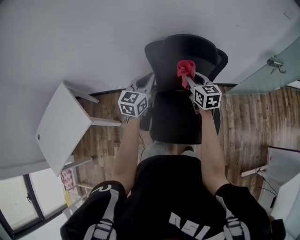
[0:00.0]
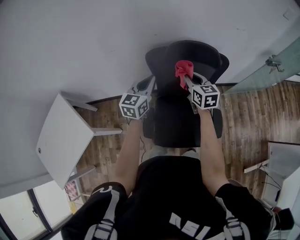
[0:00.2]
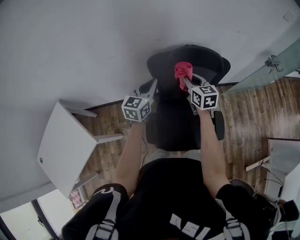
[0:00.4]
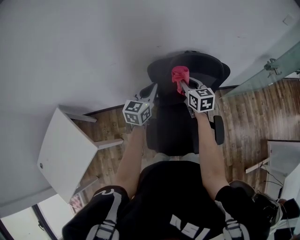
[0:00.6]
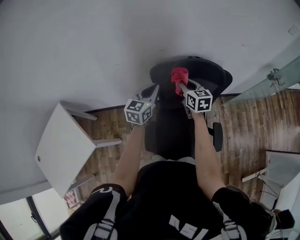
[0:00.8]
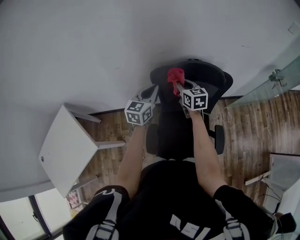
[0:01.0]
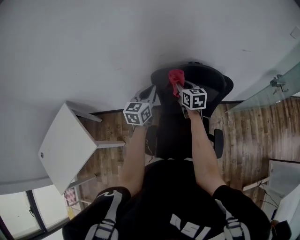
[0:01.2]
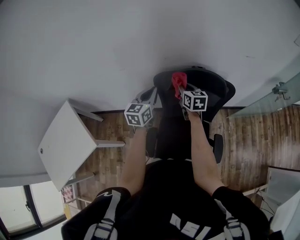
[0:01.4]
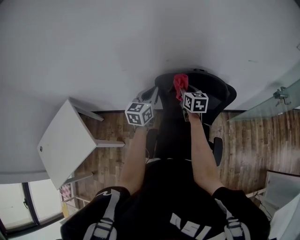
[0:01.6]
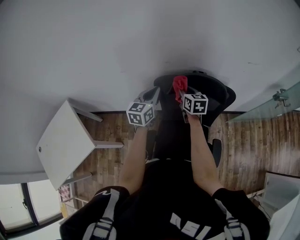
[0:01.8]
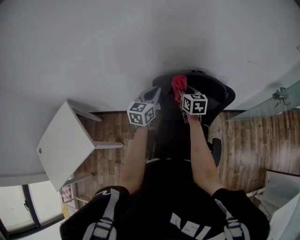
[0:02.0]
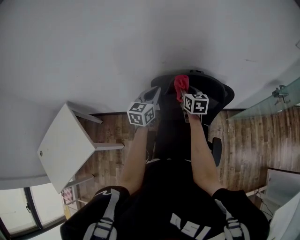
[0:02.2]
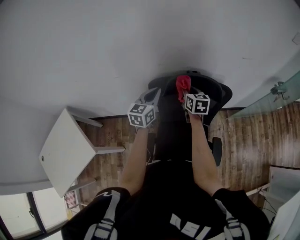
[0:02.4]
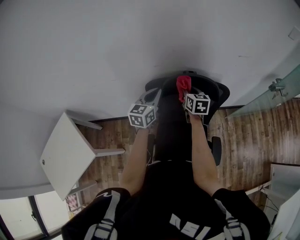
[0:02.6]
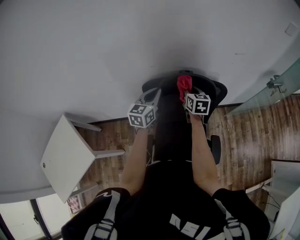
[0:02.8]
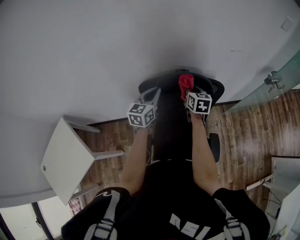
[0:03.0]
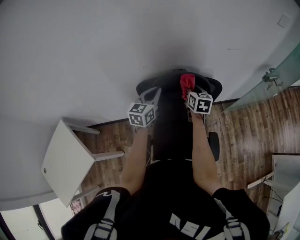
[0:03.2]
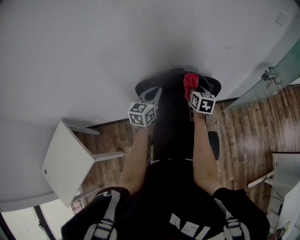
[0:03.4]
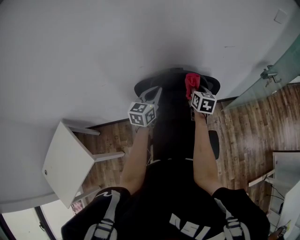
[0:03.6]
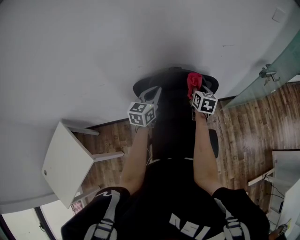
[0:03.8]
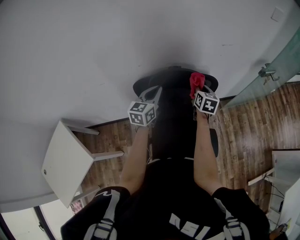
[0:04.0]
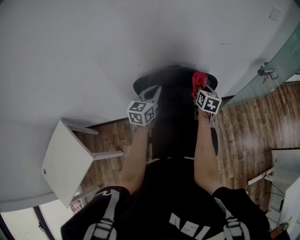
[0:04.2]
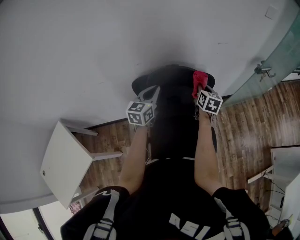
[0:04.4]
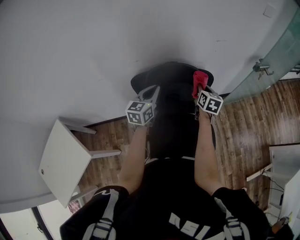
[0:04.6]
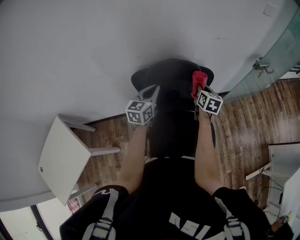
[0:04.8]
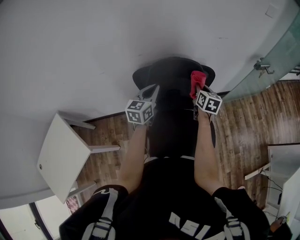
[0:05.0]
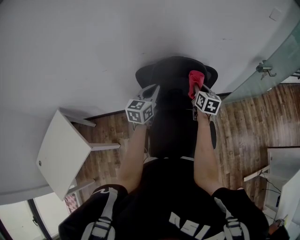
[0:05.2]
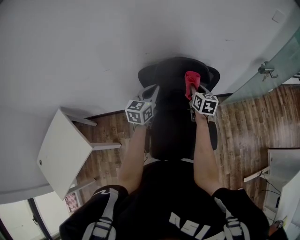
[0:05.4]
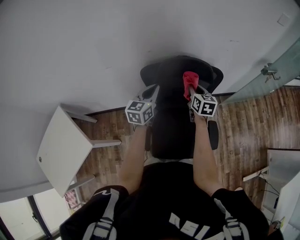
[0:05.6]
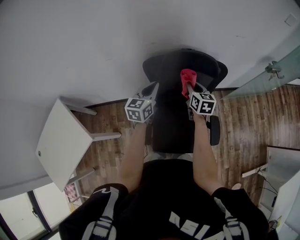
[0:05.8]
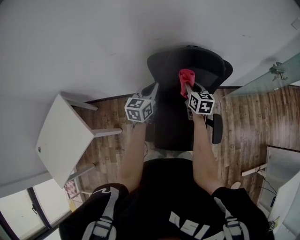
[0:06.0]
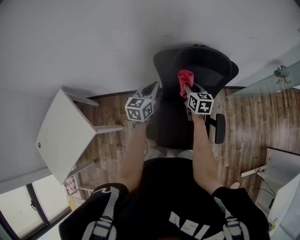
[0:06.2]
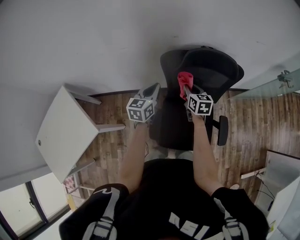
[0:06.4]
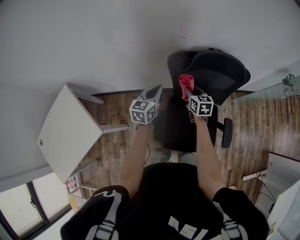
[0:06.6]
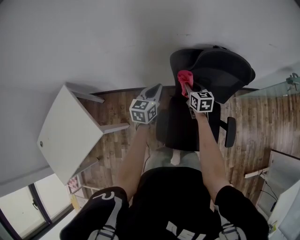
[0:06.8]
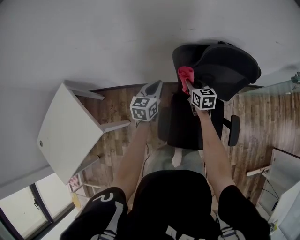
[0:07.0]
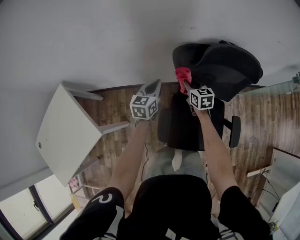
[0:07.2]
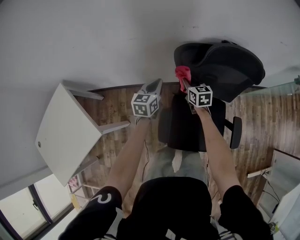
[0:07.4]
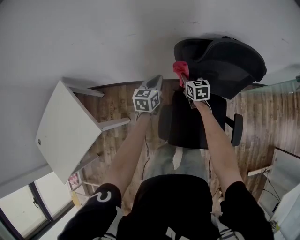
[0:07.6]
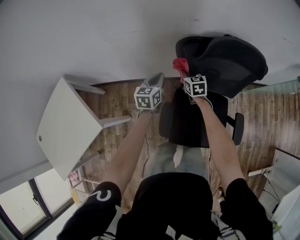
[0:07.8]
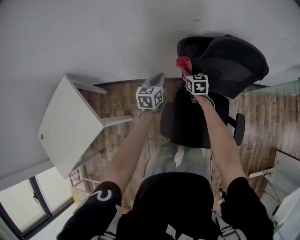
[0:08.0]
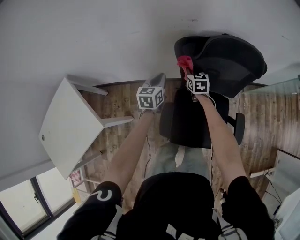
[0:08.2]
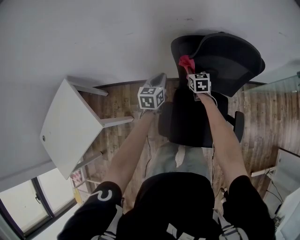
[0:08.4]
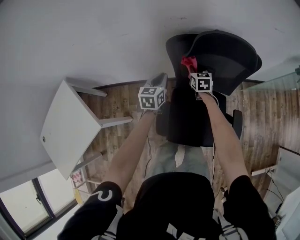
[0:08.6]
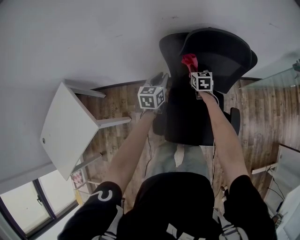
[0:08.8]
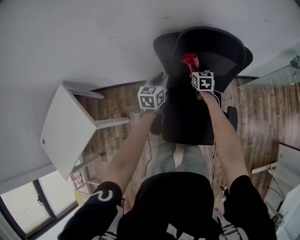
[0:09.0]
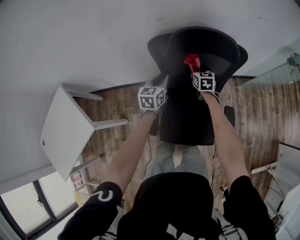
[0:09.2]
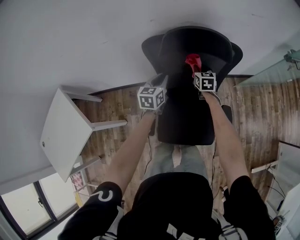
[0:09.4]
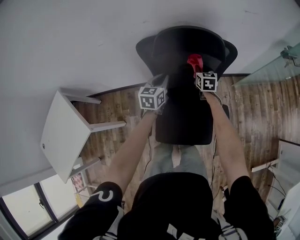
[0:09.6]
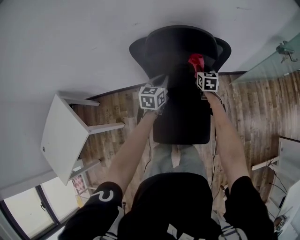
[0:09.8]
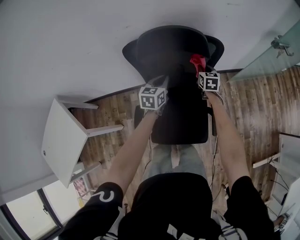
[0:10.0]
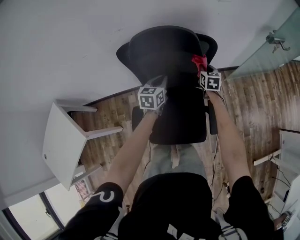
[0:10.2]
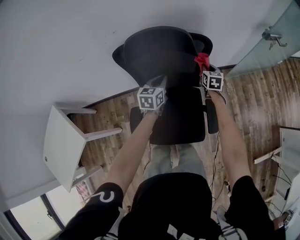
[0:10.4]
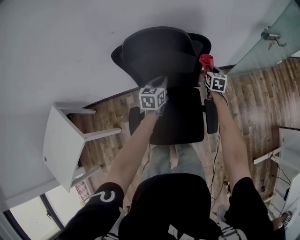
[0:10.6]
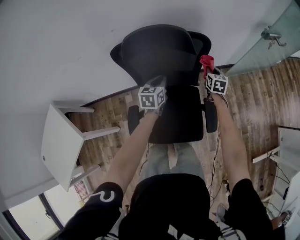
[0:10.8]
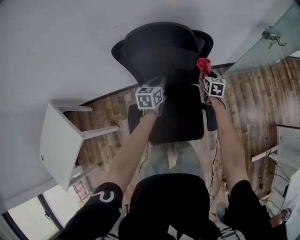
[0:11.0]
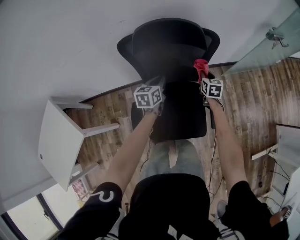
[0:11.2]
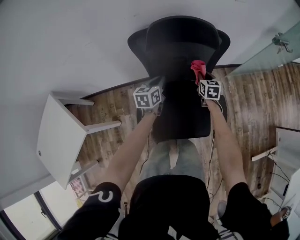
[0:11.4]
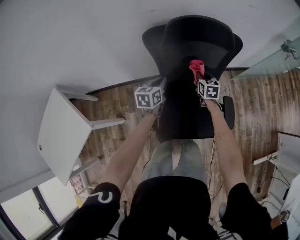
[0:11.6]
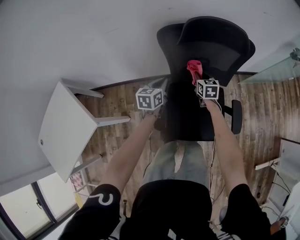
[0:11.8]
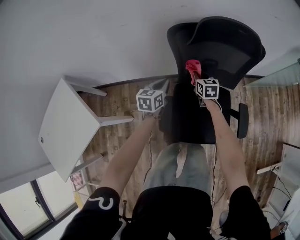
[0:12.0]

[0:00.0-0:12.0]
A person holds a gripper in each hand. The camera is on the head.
0:00.0 to 0:01.6: The left gripper shifts approximately 15 cm forward. The right gripper goes some 20 cm forward and to the left.
0:01.6 to 0:03.0: Both grippers move to the right, approximately 10 cm.
0:03.0 to 0:04.4: The left gripper ends up approximately 5 cm from where it was. The right gripper shifts roughly 10 cm to the right.
0:04.4 to 0:06.0: The left gripper travels to the left, backward and downward by roughly 15 cm; the right gripper goes roughly 20 cm to the left and backward.
0:06.0 to 0:07.6: The left gripper moves downward and to the left, approximately 20 cm, while the right gripper heads to the left and downward, covering approximately 25 cm.
0:07.6 to 0:09.0: Both grippers travel together to the right, about 15 cm.
0:09.0 to 0:10.4: The grippers both shift to the right by about 25 cm.
0:10.4 to 0:12.0: The grippers both shift to the left by approximately 30 cm.

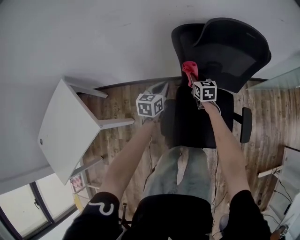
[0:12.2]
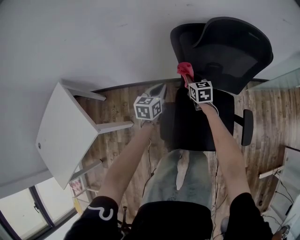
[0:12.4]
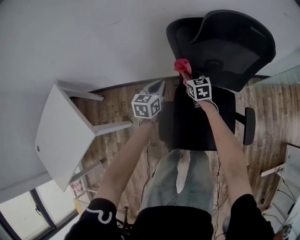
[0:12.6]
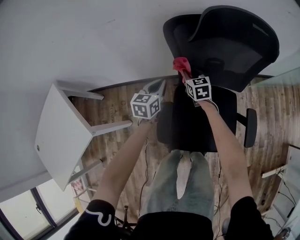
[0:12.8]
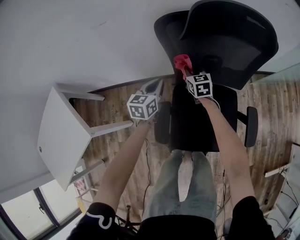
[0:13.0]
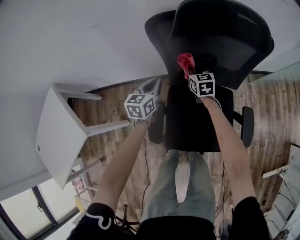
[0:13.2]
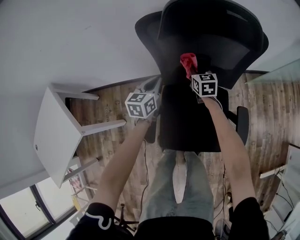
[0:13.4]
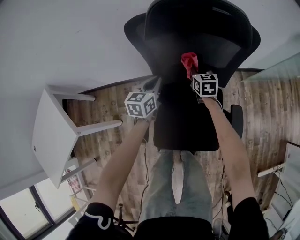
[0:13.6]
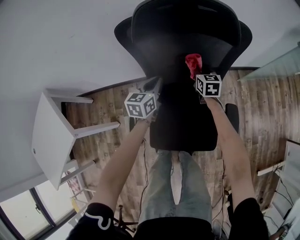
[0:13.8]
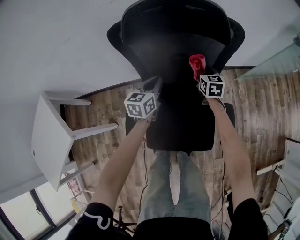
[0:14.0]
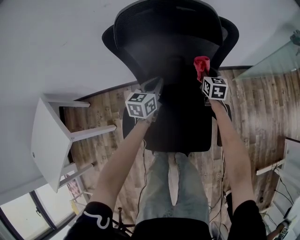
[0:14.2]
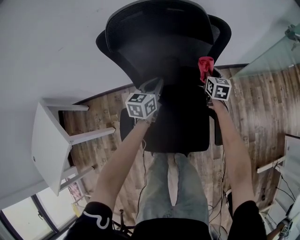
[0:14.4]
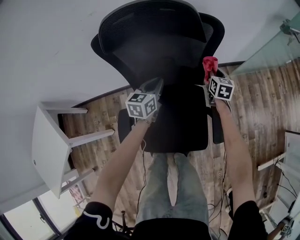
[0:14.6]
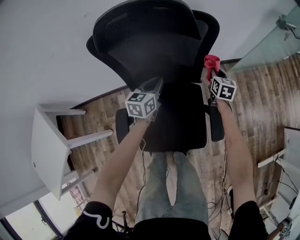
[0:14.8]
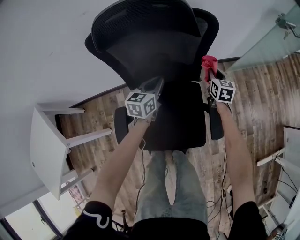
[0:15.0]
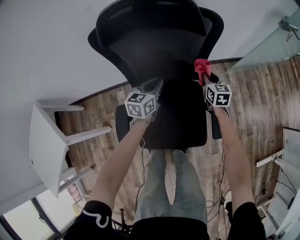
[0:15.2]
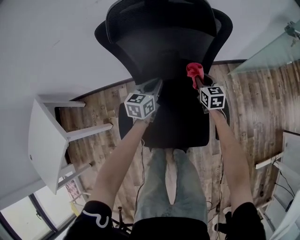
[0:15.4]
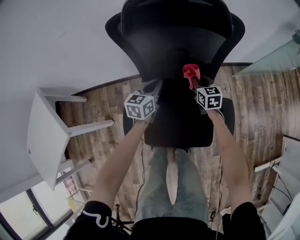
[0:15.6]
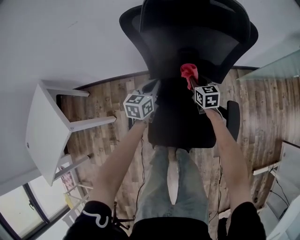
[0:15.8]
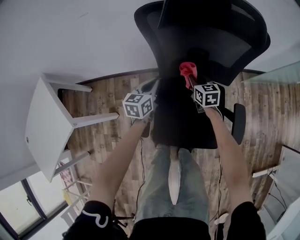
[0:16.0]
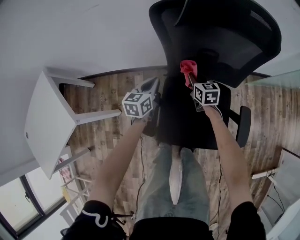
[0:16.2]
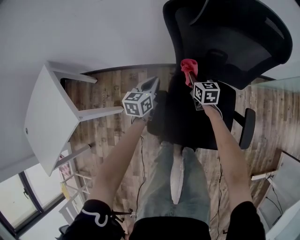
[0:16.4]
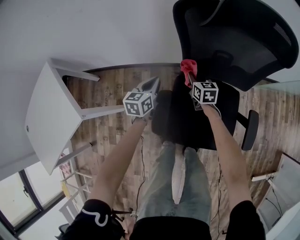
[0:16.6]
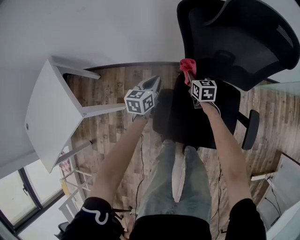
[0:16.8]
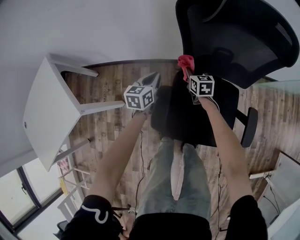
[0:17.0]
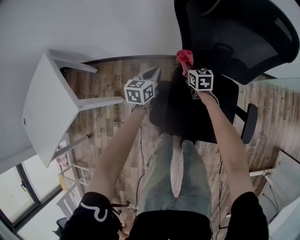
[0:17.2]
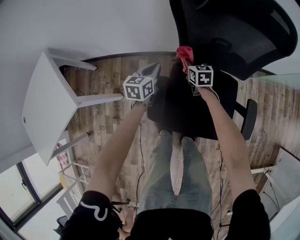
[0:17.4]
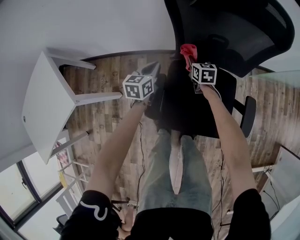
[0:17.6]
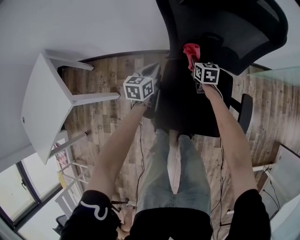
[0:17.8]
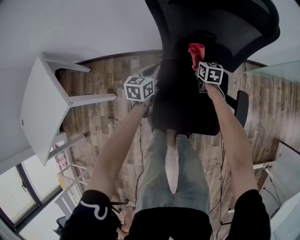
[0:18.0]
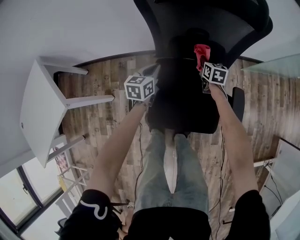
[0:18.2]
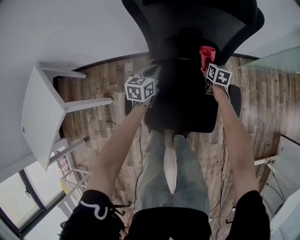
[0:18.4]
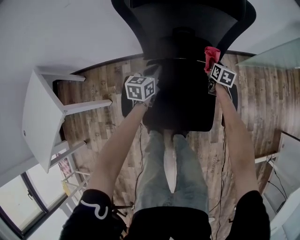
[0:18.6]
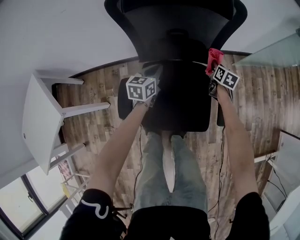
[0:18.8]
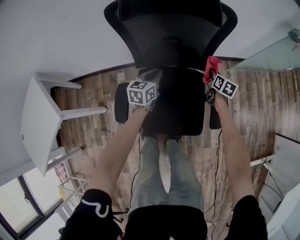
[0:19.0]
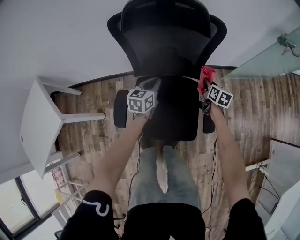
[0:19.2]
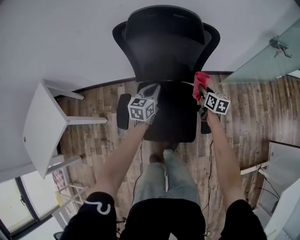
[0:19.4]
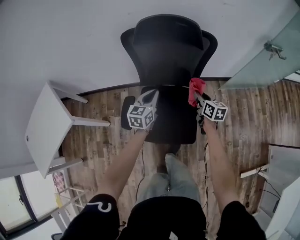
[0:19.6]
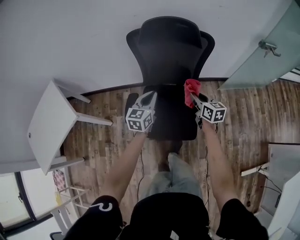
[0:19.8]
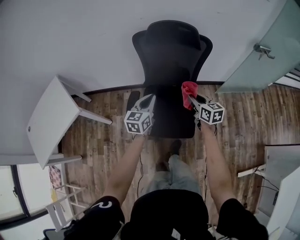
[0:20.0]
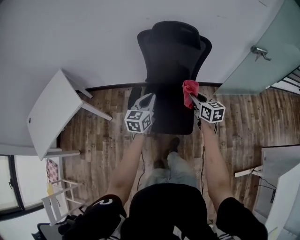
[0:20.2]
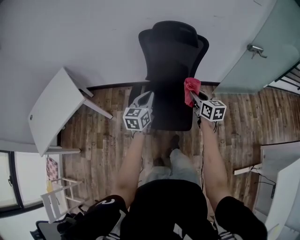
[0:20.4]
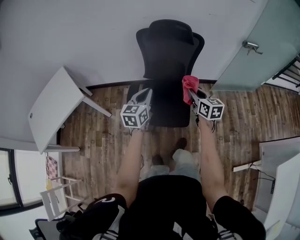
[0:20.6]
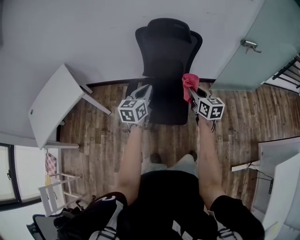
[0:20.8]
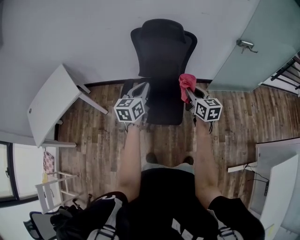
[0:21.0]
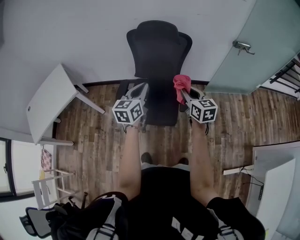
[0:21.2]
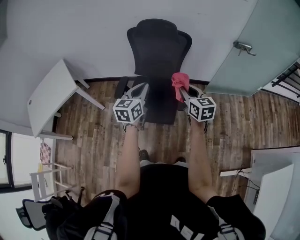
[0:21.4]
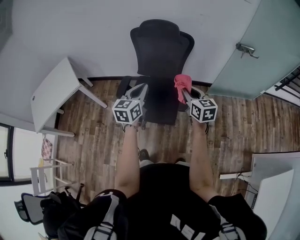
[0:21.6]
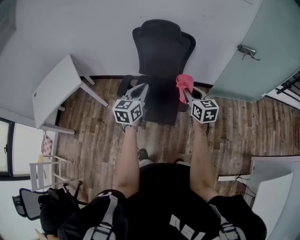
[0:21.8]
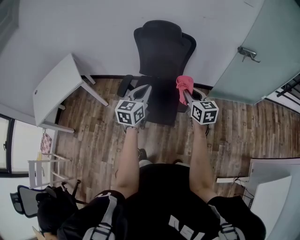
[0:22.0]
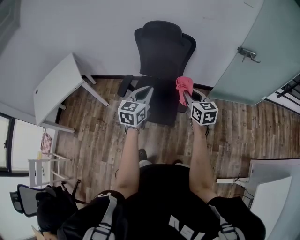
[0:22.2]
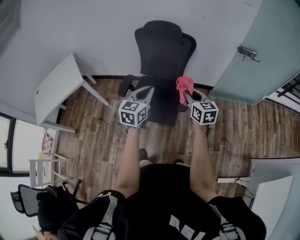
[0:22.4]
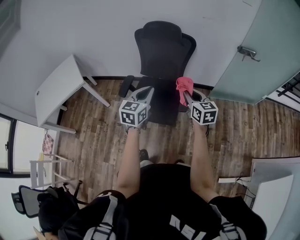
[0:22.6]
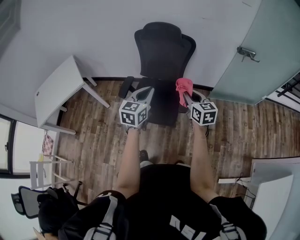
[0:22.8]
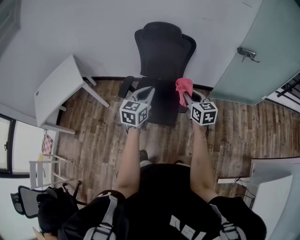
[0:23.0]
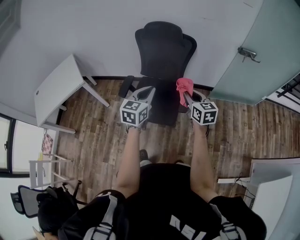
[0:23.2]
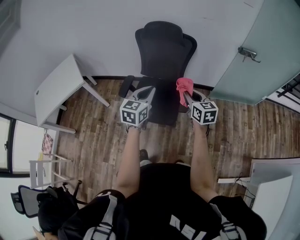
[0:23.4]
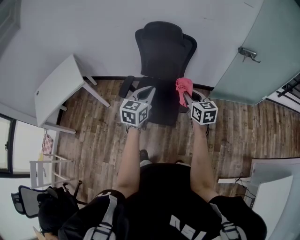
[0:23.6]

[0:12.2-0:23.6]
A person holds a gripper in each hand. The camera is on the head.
0:12.2 to 0:13.6: The two grippers go some 15 cm to the right.
0:13.6 to 0:15.0: The left gripper travels to the right by some 15 cm. The right gripper heads to the right, covering about 25 cm.
0:15.0 to 0:16.4: Both grippers move to the left, approximately 35 cm. The right gripper turns by some 30 degrees.
0:16.4 to 0:17.8: The right gripper ends up some 5 cm from where it was.
0:17.8 to 0:19.4: The grippers both shift to the right and upward by some 30 cm.
0:19.4 to 0:20.8: Both grippers travel together backward and upward, about 40 cm. The right gripper turns by roughly 20 degrees.
0:20.8 to 0:22.2: The left gripper goes some 15 cm to the right and backward. Meanwhile the right gripper shifts about 10 cm to the right.
0:22.2 to 0:23.6: The two grippers keep their place.
